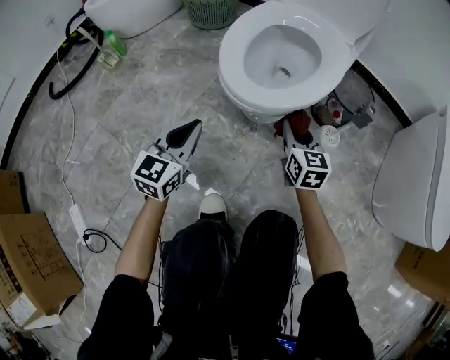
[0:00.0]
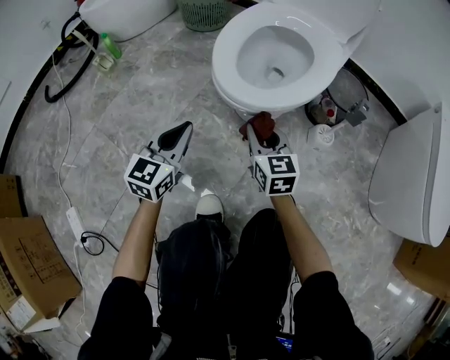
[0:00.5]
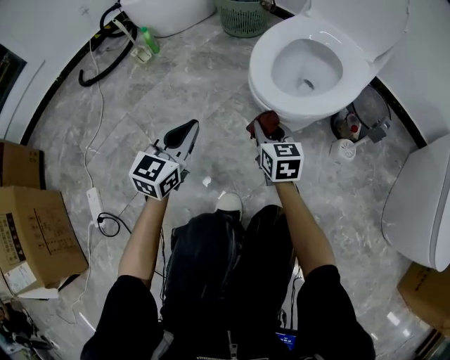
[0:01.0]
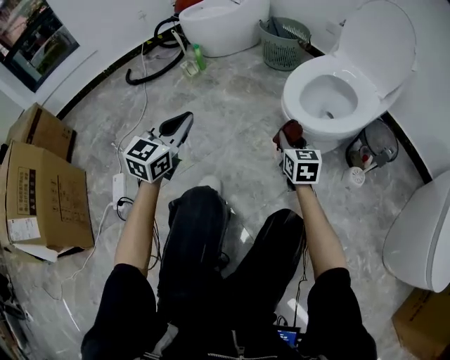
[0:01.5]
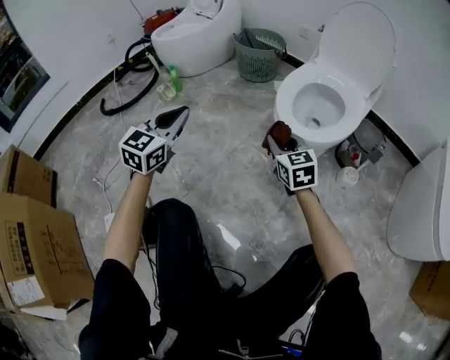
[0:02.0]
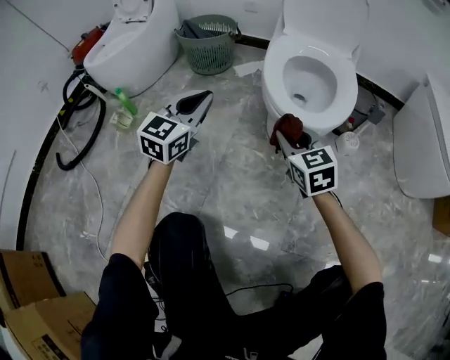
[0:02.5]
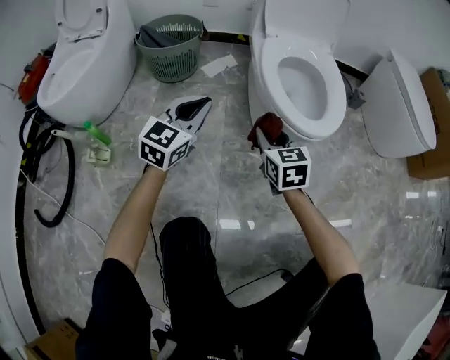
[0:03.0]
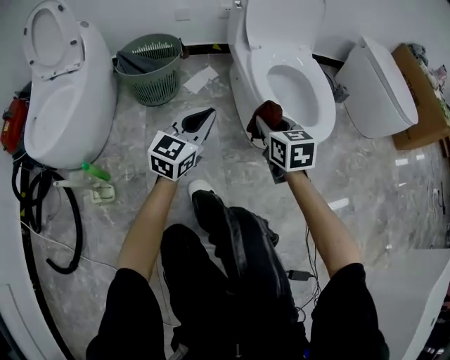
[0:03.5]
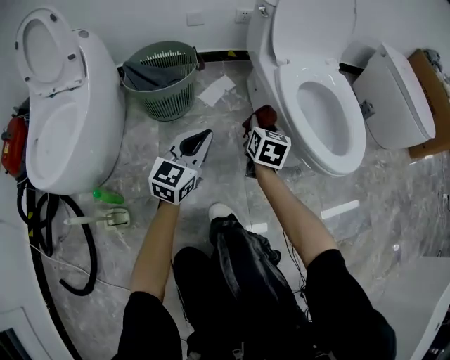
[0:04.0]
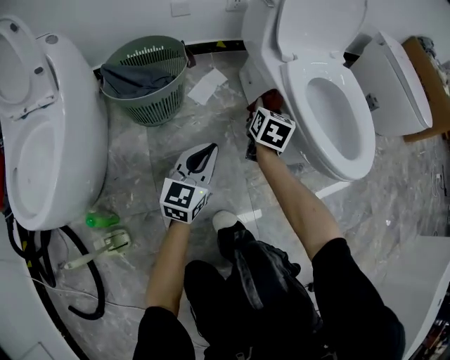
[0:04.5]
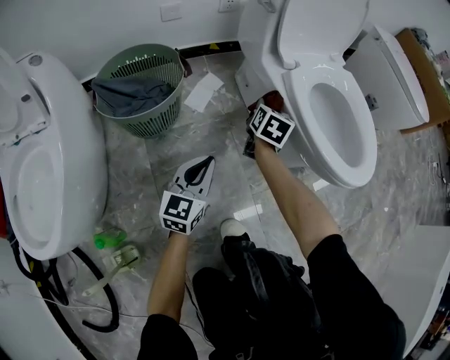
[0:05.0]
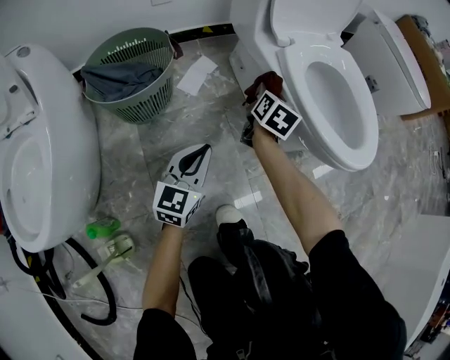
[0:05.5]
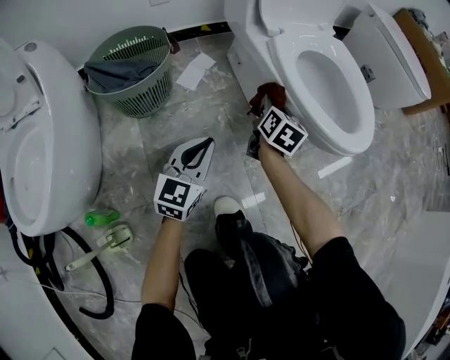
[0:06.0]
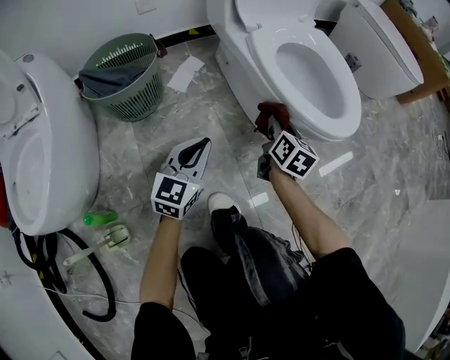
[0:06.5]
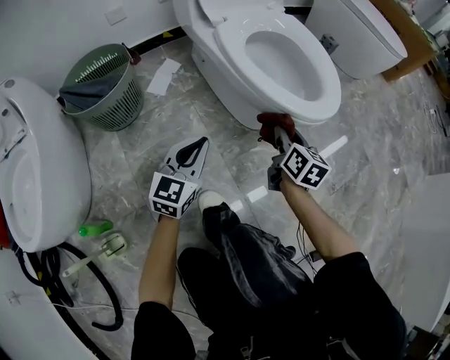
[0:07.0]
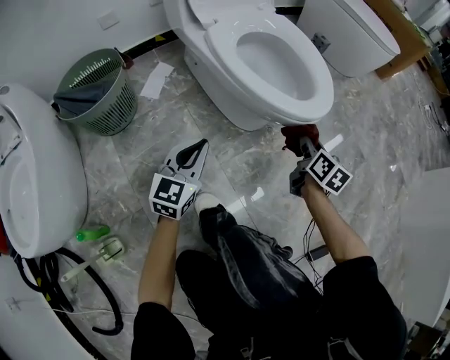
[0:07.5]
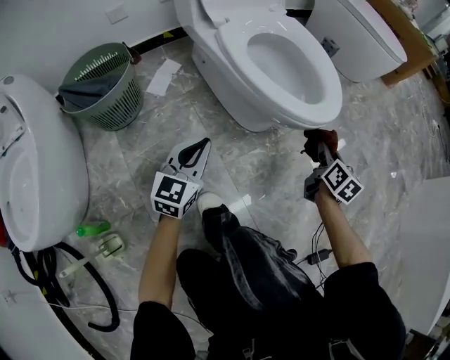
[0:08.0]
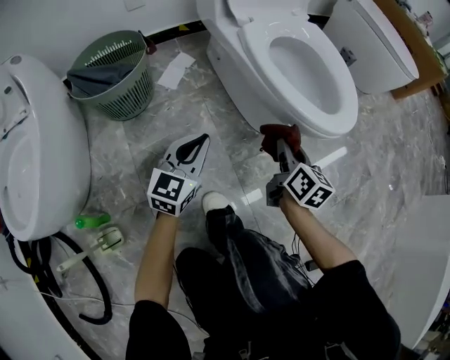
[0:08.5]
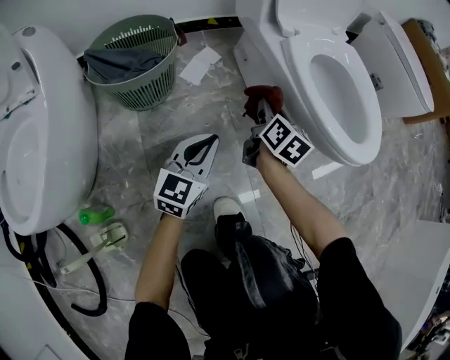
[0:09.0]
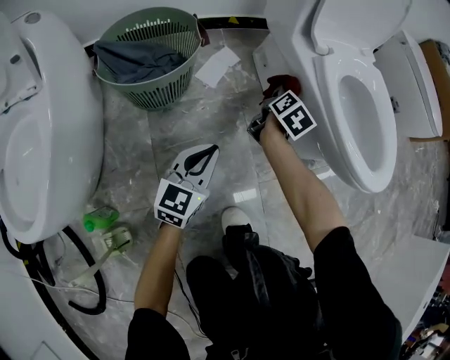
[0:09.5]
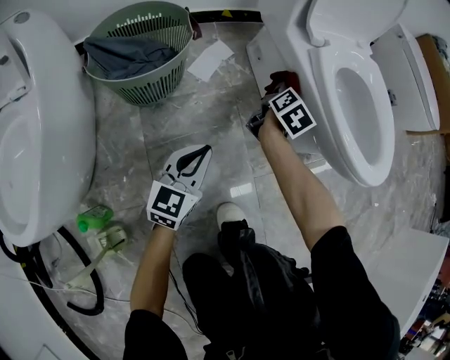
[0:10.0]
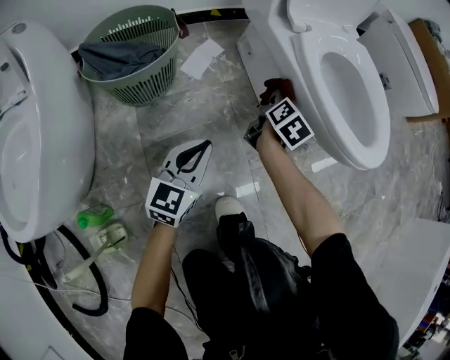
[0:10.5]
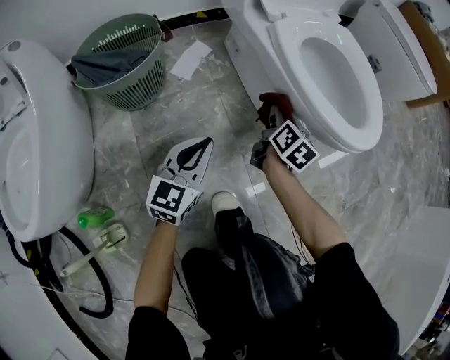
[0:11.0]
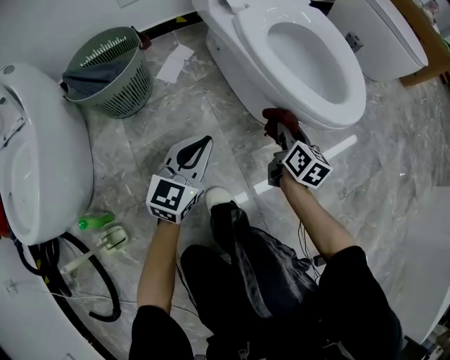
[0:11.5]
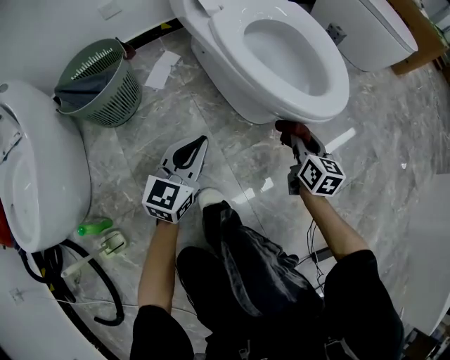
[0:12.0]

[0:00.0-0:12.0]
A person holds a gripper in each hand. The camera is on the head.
0:00.0 to 0:02.0: The grippers both shift to the left and upward by some 25 cm. The right gripper rotates about 20 degrees.
0:02.0 to 0:04.0: The right gripper ends up approximately 35 cm from where it was, and swivels some 80 degrees. Meanwhile the left gripper ends up about 40 cm from where it was, and swivels some 50 degrees.
0:04.0 to 0:06.0: The left gripper heads downward, covering some 10 cm. The right gripper goes about 10 cm forward and downward, and rotates approximately 20 degrees.
0:06.0 to 0:08.0: The left gripper shifts some 10 cm to the right. The right gripper heads to the right, covering about 35 cm.
0:08.0 to 0:10.0: The left gripper goes some 15 cm to the left, while the right gripper heads to the left and forward, covering roughly 40 cm.
0:10.0 to 0:12.0: The right gripper travels to the right and backward by roughly 35 cm, and changes its angle by some 20 degrees, while the left gripper shifts approximately 20 cm to the right.

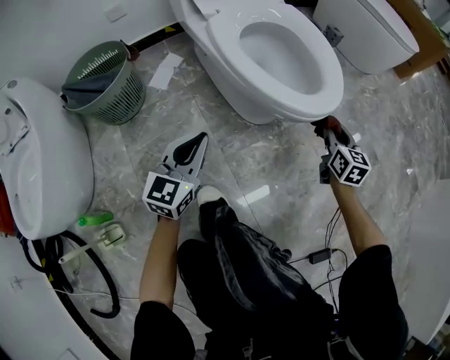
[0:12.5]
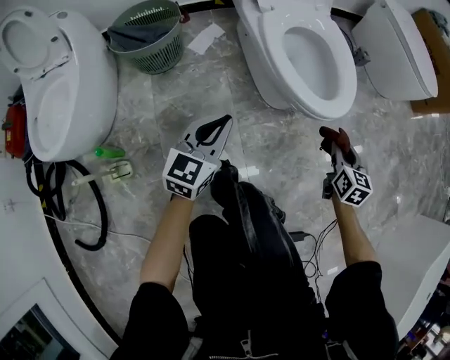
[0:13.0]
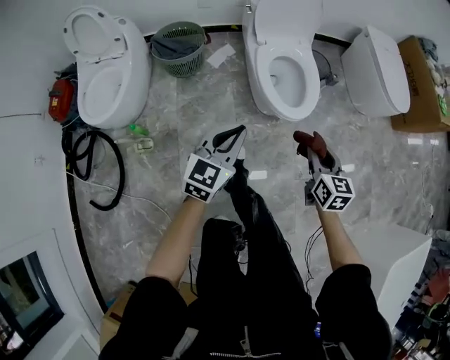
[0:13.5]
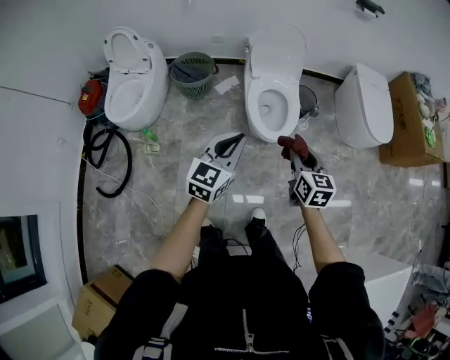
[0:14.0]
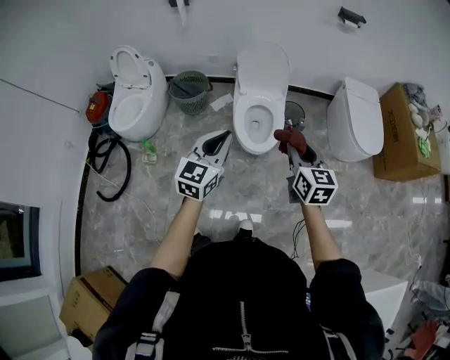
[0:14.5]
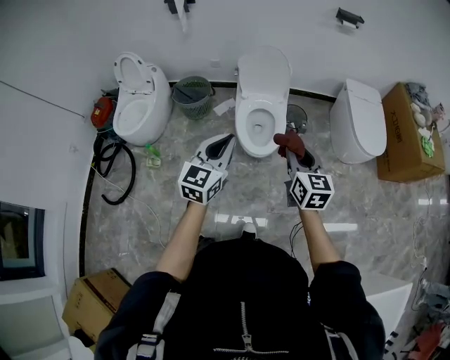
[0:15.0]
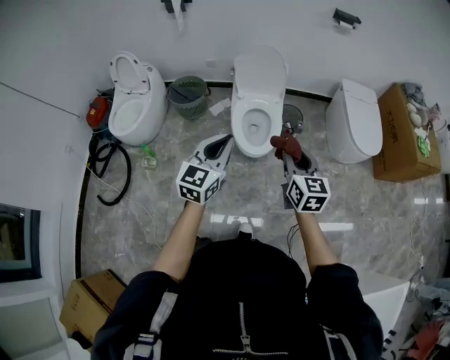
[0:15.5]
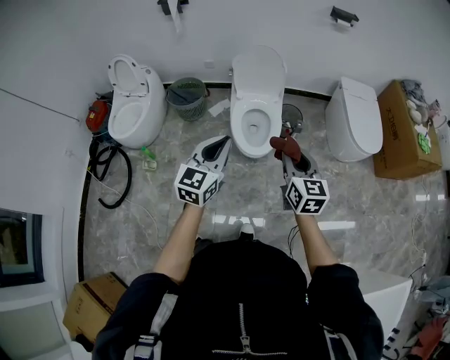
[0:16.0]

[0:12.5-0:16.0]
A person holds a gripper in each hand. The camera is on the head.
0:12.5 to 0:14.5: The two grippers go roughly 70 cm upward. The left gripper turns by some 30 degrees. Meanwhile the right gripper changes its angle by roughly 40 degrees.
0:14.5 to 0:16.0: The grippers stay close to where they were, moving slightly.

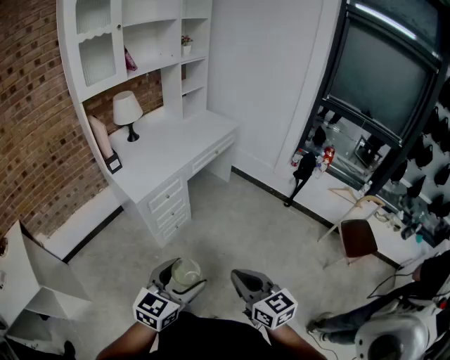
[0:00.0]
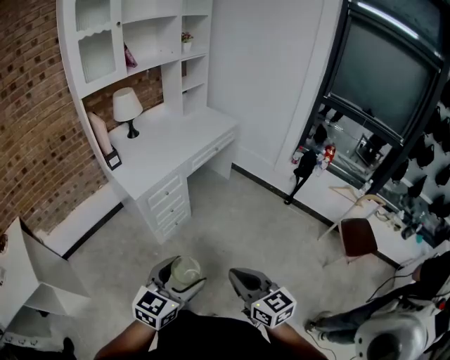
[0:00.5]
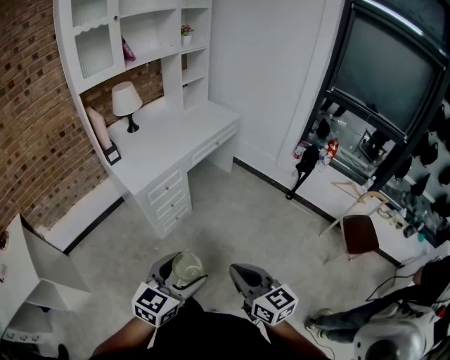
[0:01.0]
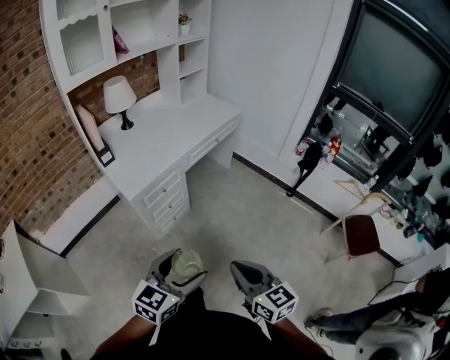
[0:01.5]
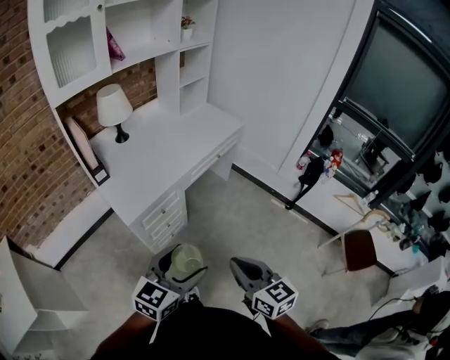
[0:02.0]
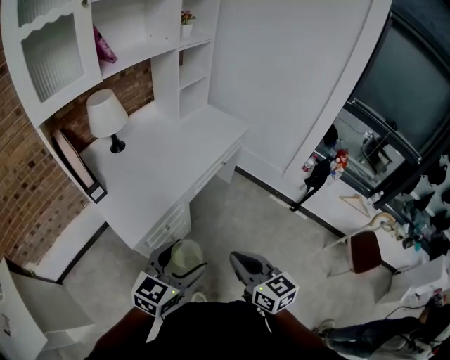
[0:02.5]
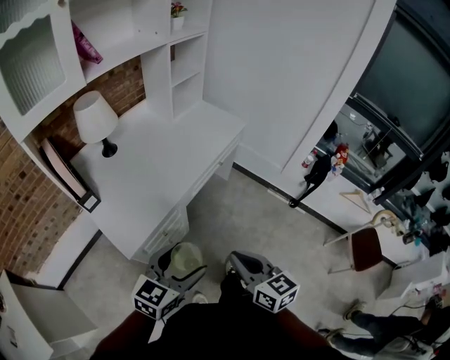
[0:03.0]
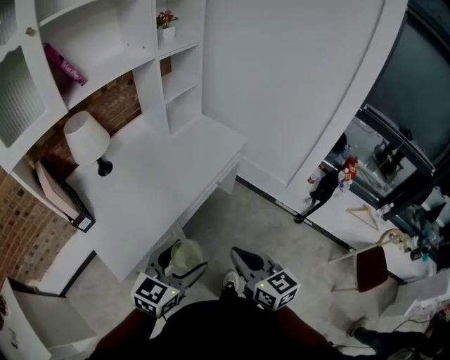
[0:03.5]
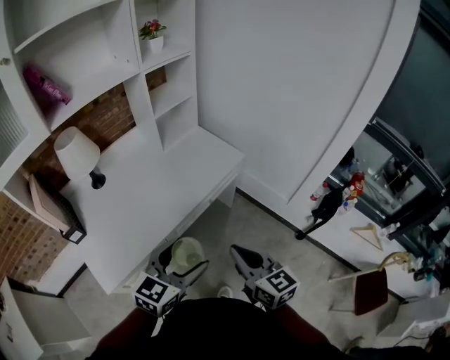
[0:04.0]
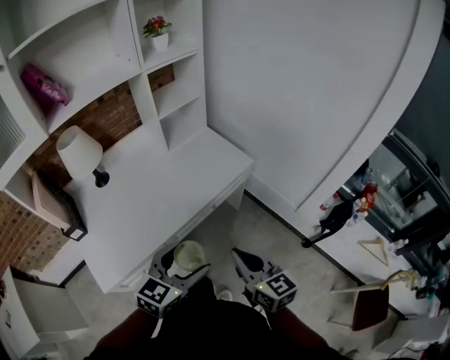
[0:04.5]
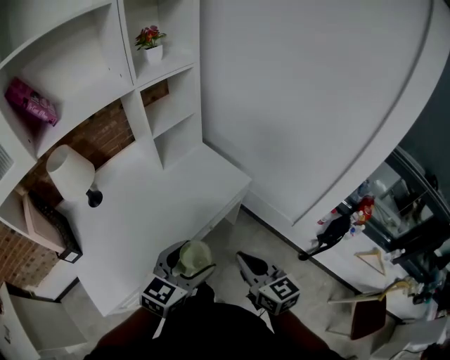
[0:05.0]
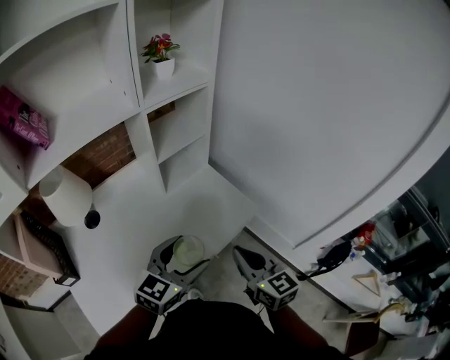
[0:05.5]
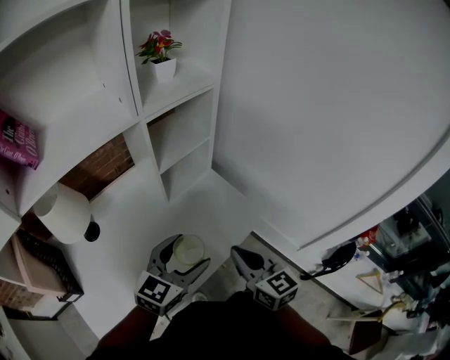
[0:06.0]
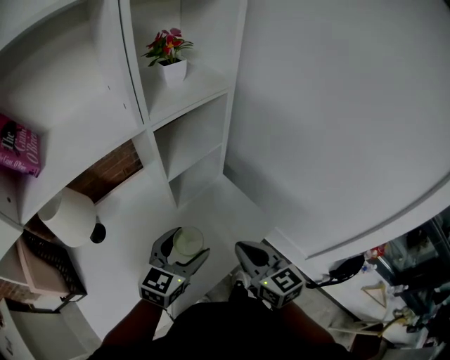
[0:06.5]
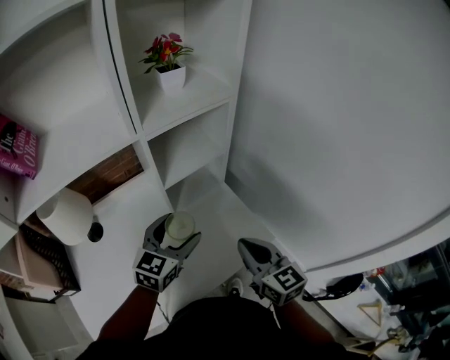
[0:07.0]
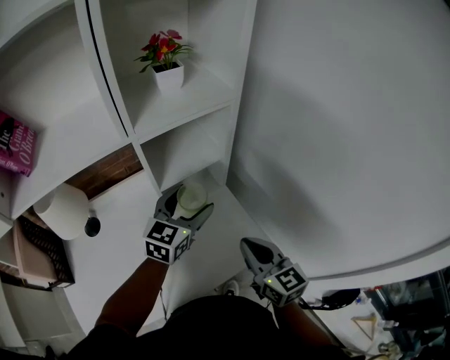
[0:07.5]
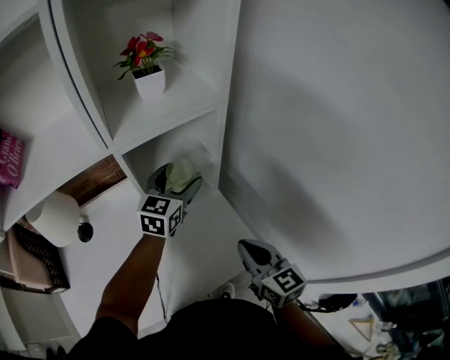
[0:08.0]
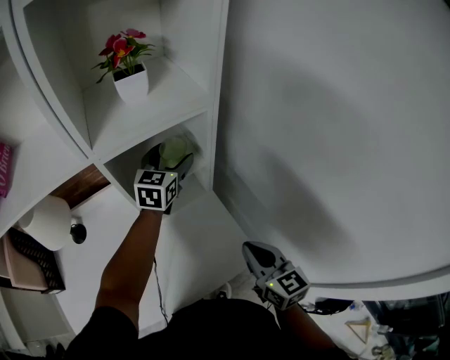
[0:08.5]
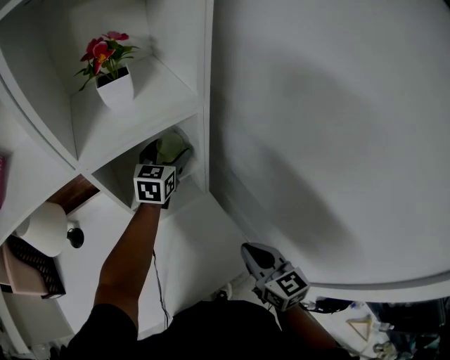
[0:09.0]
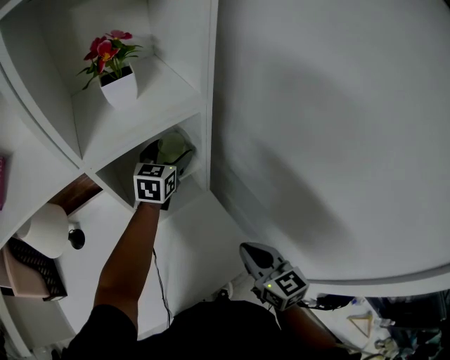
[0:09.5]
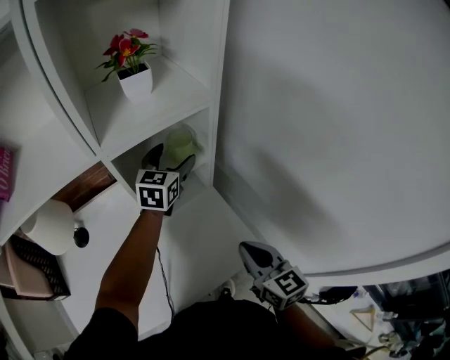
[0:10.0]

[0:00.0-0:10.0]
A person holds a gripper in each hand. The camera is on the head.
0:00.0 to 0:02.0: Both grippers move forward, some 20 cm.
0:02.0 to 0:04.0: Both grippers move forward, some 40 cm.
0:04.0 to 0:06.0: Both grippers move forward, some 30 cm.
0:06.0 to 0:08.0: The right gripper heads forward and to the right, covering some 20 cm. The left gripper shifts roughly 35 cm forward, and rotates about 30 degrees.
0:08.0 to 0:10.0: The left gripper travels forward by about 5 cm.

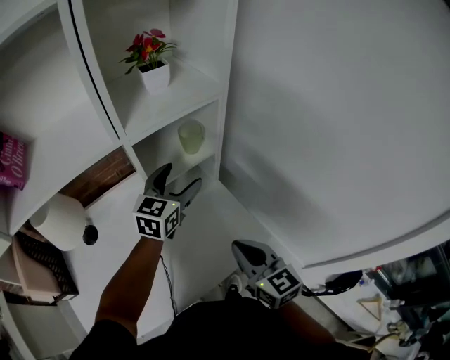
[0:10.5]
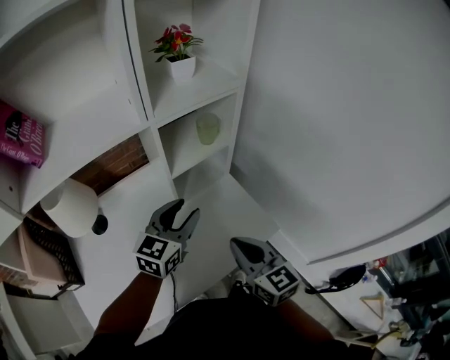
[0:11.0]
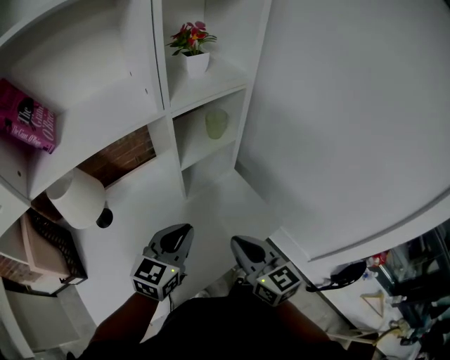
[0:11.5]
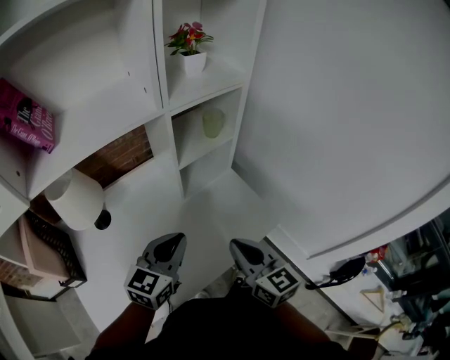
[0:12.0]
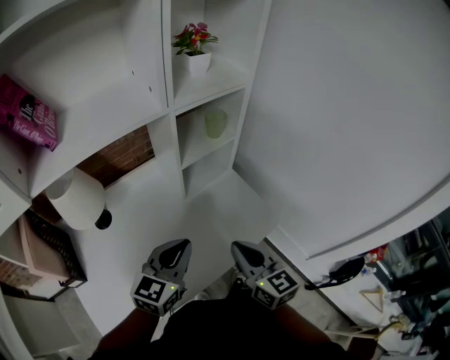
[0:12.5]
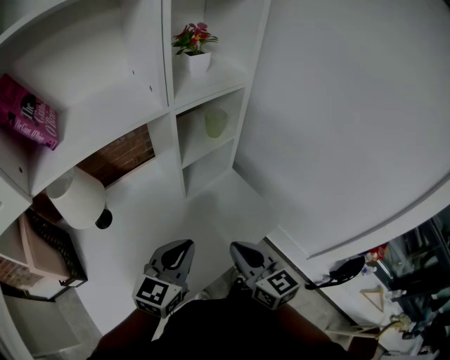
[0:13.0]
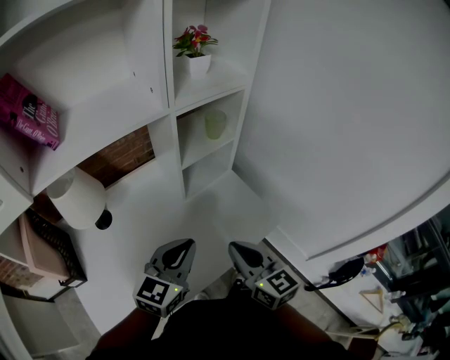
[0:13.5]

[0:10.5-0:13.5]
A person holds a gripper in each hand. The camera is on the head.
0:10.5 to 0:12.0: The left gripper travels backward by some 25 cm, and closes its fingers, while the right gripper is displaced to the left and backward by about 10 cm.
0:12.0 to 0:13.5: The grippers stay close to where they were, moving slightly.
